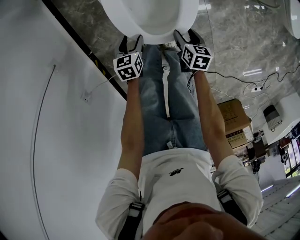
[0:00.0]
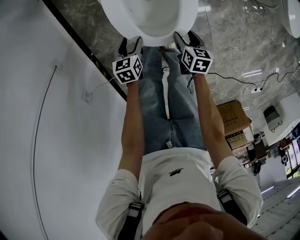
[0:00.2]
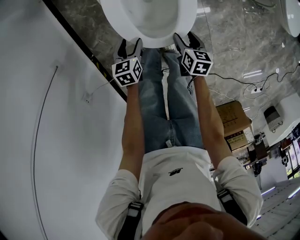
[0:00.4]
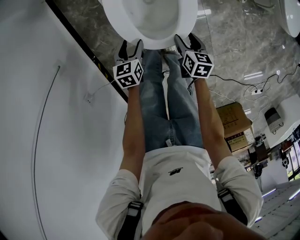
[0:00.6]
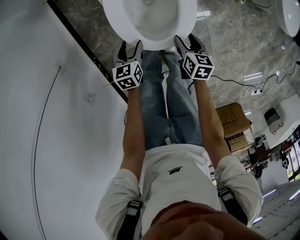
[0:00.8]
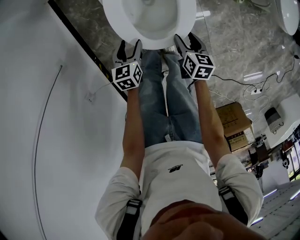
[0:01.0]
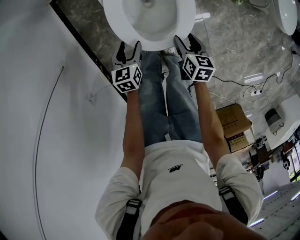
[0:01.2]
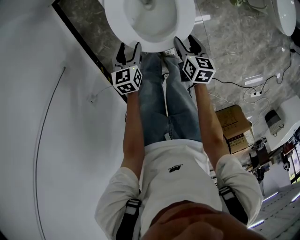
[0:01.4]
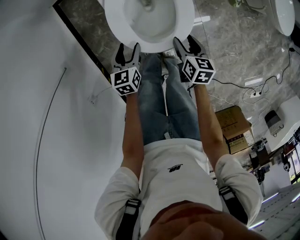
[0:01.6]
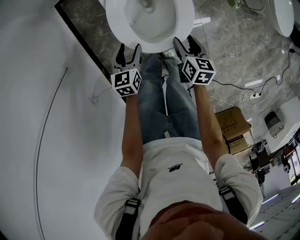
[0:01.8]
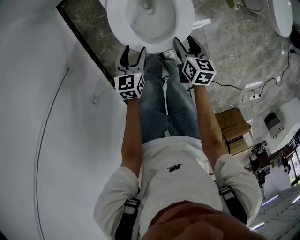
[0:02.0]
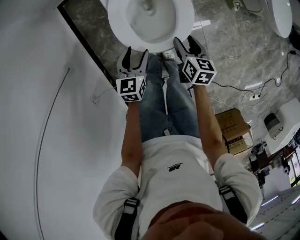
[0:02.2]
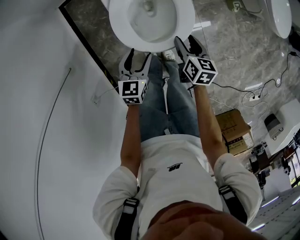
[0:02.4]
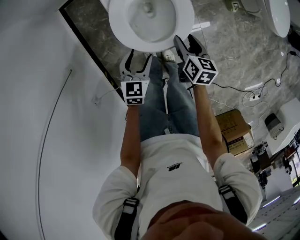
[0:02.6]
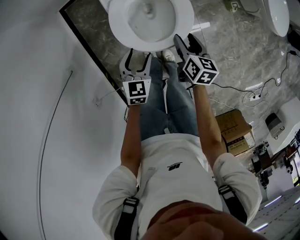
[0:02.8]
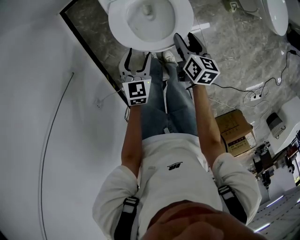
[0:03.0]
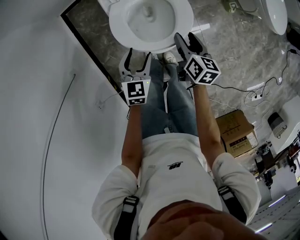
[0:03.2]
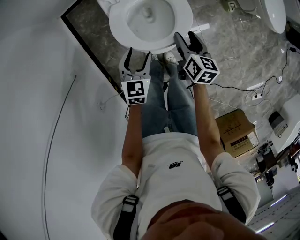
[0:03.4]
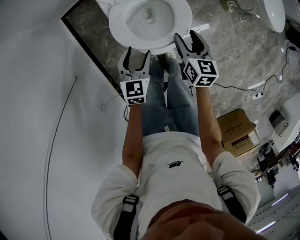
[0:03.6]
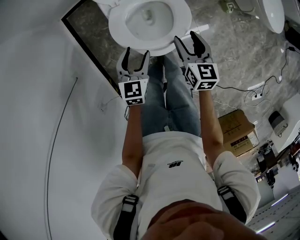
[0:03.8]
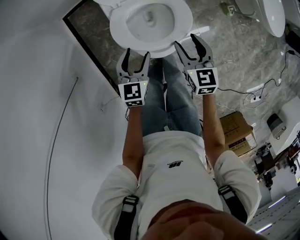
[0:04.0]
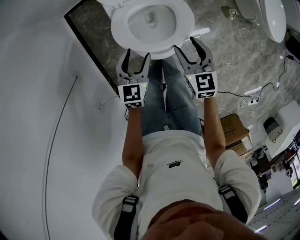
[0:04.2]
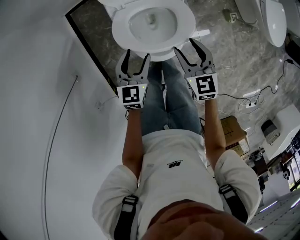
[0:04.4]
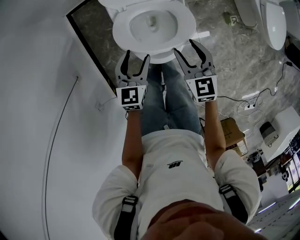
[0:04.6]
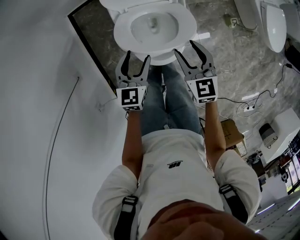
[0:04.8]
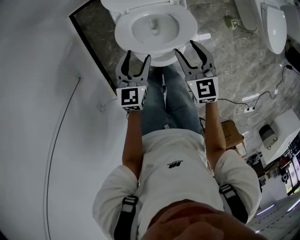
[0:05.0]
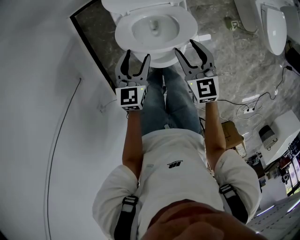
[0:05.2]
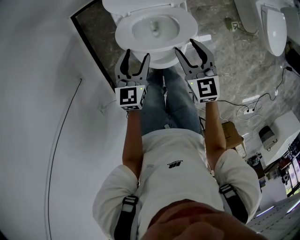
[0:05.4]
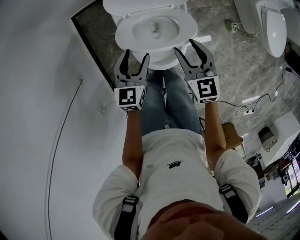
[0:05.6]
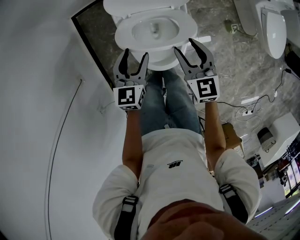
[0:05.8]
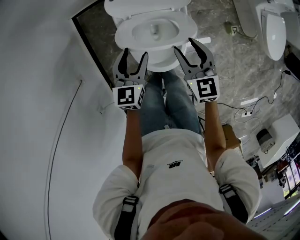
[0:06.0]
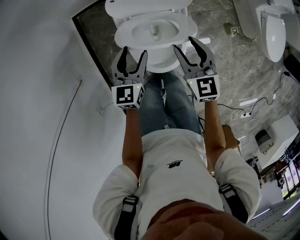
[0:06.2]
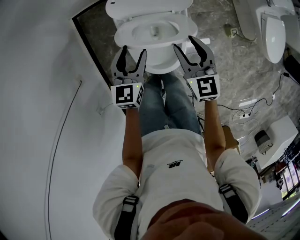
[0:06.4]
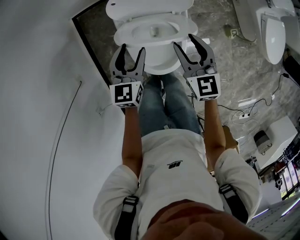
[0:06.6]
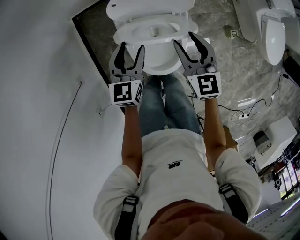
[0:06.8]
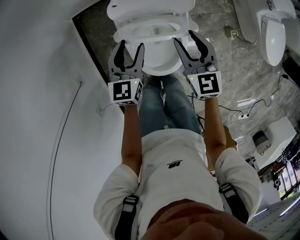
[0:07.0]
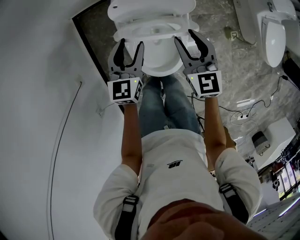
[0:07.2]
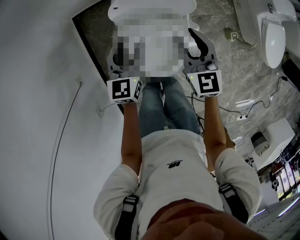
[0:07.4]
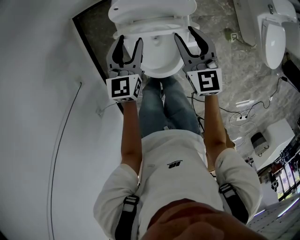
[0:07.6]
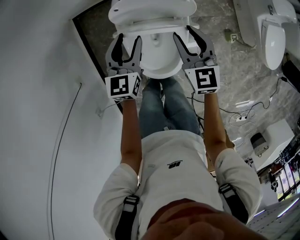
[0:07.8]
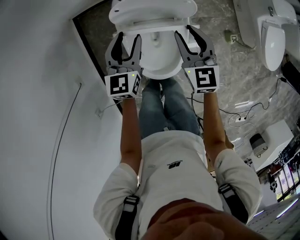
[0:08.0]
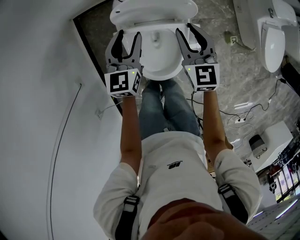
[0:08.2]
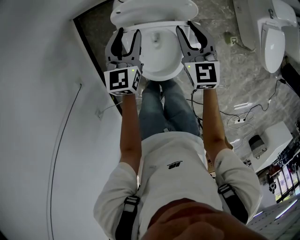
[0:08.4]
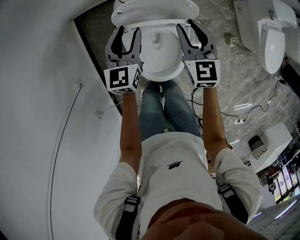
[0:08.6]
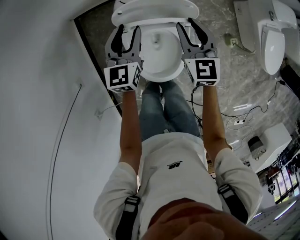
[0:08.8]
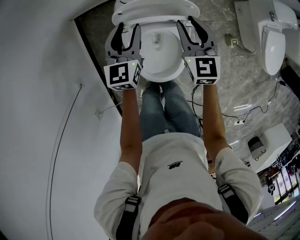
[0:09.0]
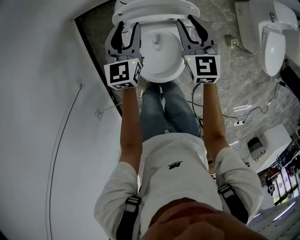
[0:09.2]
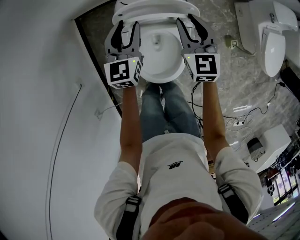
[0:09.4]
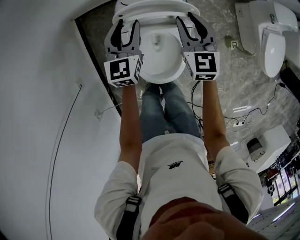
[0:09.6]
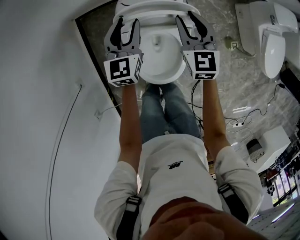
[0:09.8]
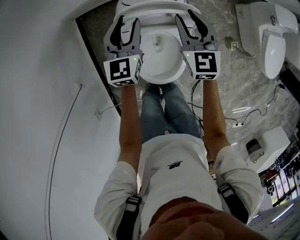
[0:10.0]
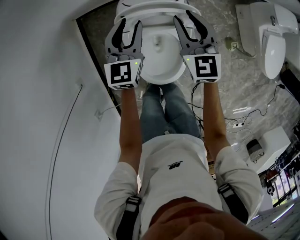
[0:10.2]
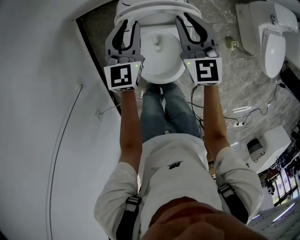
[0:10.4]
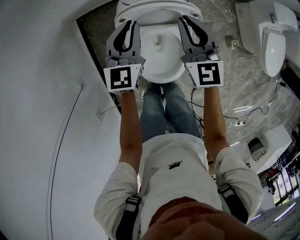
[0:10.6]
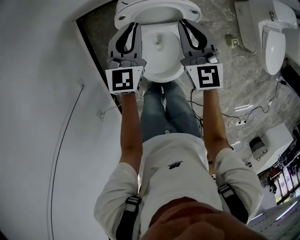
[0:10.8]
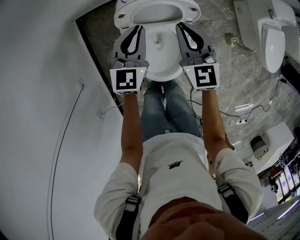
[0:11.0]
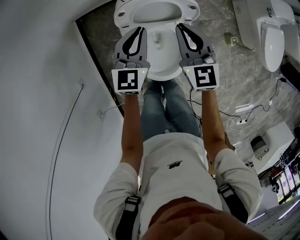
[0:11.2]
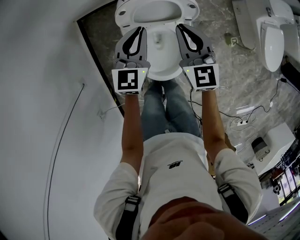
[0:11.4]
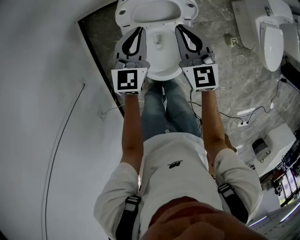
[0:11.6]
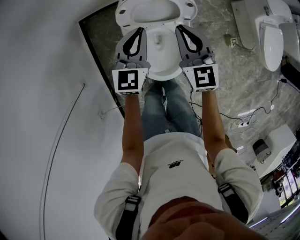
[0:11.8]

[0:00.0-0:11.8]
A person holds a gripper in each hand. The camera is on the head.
0:00.0 to 0:01.4: The two grippers go roughly 15 cm upward.
0:01.4 to 0:03.0: The left gripper moves upward, some 10 cm, and changes its angle by approximately 20 degrees, while the right gripper moves upward and forward, approximately 10 cm.
0:03.0 to 0:04.4: The right gripper goes some 10 cm upward, and twists roughly 40 degrees counterclockwise, seen from behind. The left gripper heads forward and upward, covering approximately 10 cm.
0:04.4 to 0:06.0: The two grippers go about 10 cm forward.
0:06.0 to 0:07.4: Both grippers travel together forward, some 10 cm.
0:07.4 to 0:08.8: Both grippers move forward, some 5 cm.
0:08.8 to 0:10.4: The right gripper shifts by some 5 cm.
0:10.4 to 0:11.8: Both grippers move backward, some 10 cm.

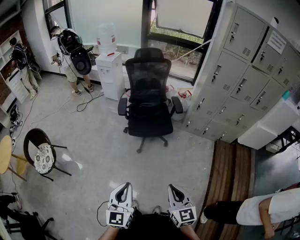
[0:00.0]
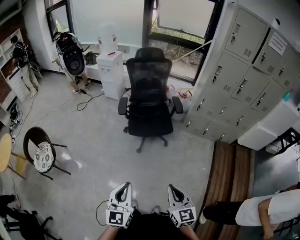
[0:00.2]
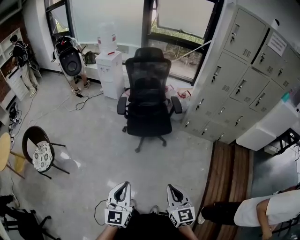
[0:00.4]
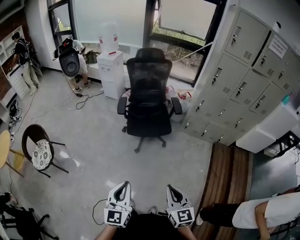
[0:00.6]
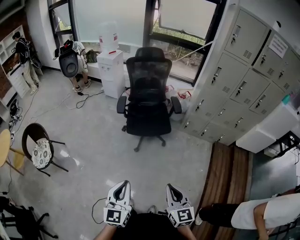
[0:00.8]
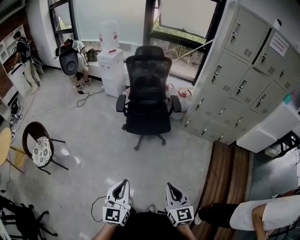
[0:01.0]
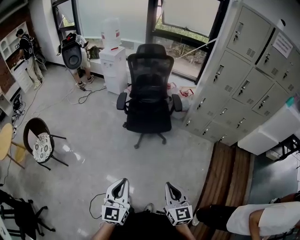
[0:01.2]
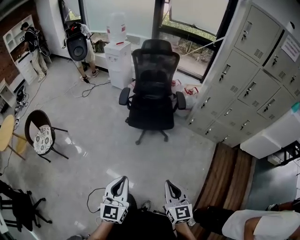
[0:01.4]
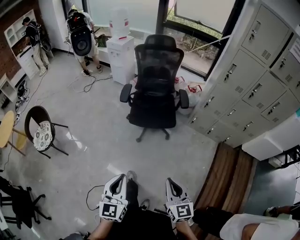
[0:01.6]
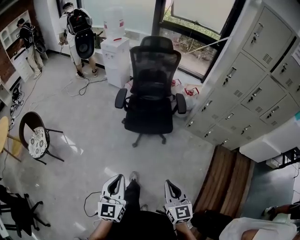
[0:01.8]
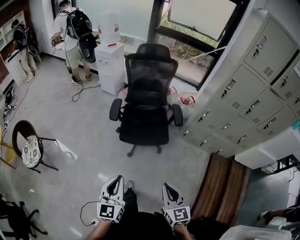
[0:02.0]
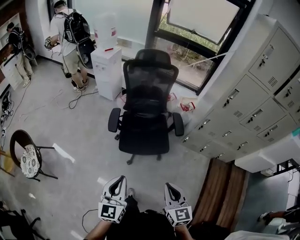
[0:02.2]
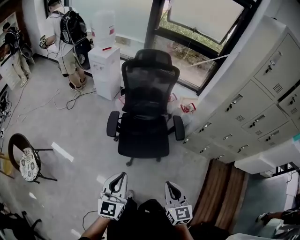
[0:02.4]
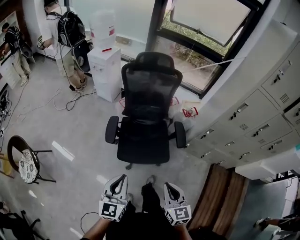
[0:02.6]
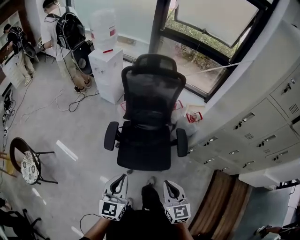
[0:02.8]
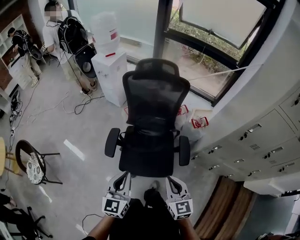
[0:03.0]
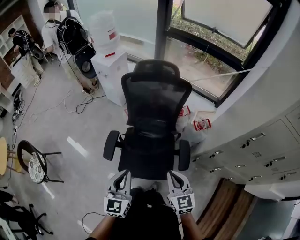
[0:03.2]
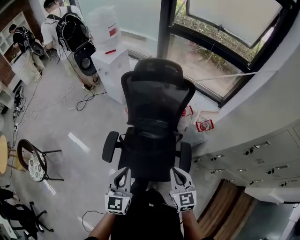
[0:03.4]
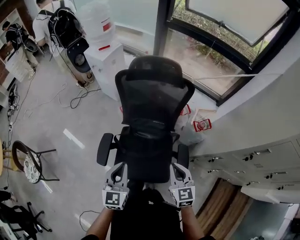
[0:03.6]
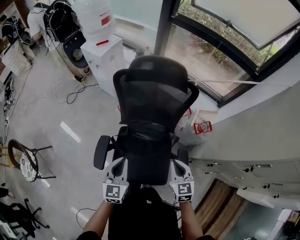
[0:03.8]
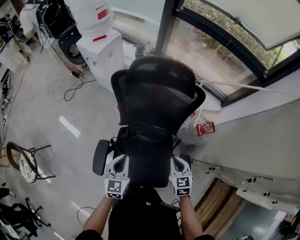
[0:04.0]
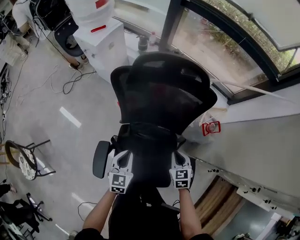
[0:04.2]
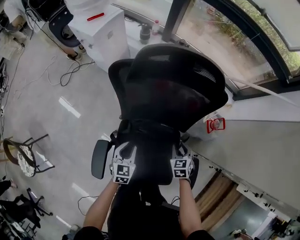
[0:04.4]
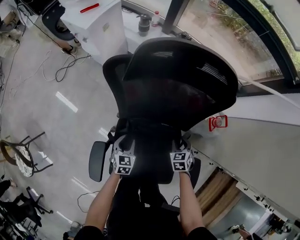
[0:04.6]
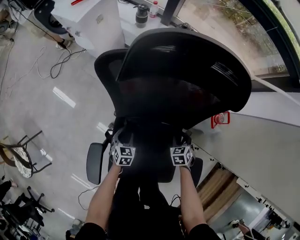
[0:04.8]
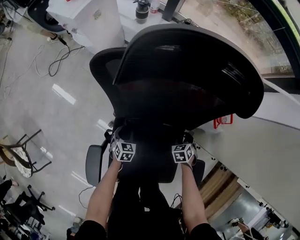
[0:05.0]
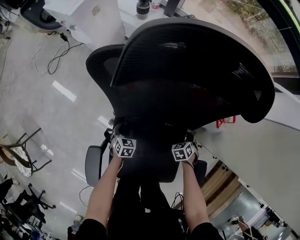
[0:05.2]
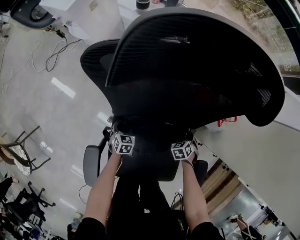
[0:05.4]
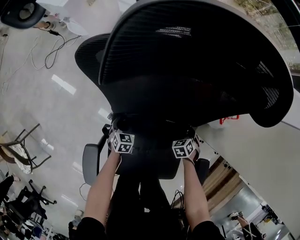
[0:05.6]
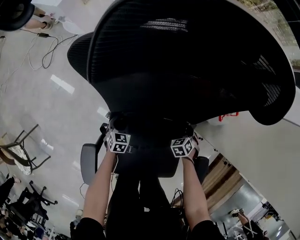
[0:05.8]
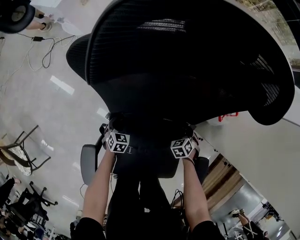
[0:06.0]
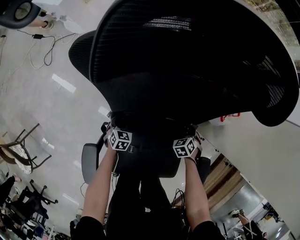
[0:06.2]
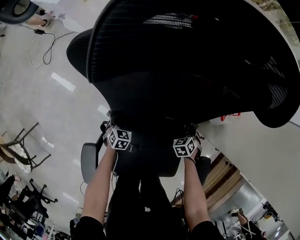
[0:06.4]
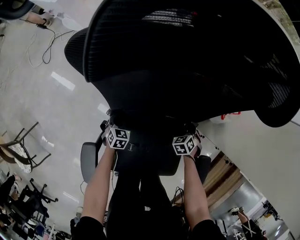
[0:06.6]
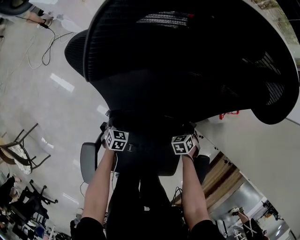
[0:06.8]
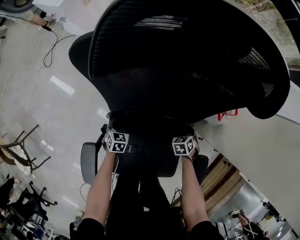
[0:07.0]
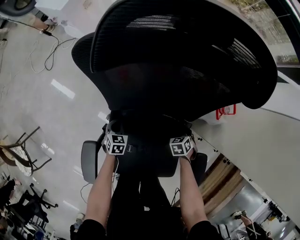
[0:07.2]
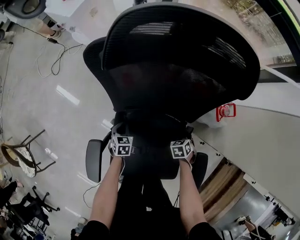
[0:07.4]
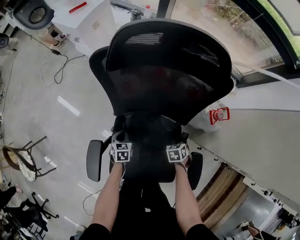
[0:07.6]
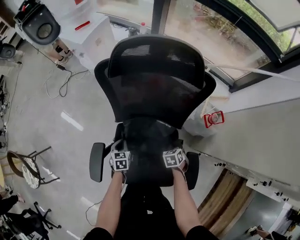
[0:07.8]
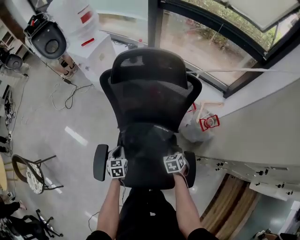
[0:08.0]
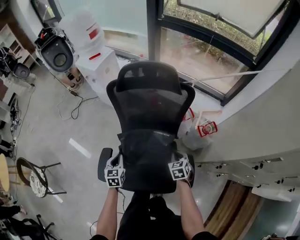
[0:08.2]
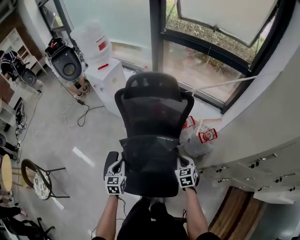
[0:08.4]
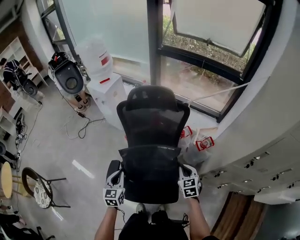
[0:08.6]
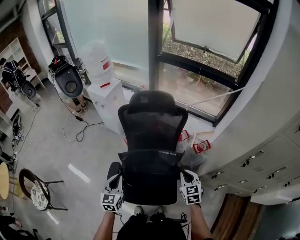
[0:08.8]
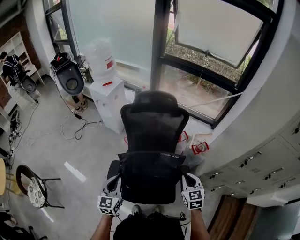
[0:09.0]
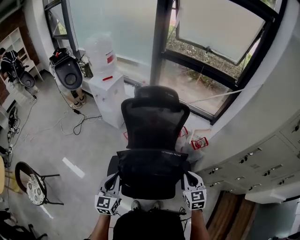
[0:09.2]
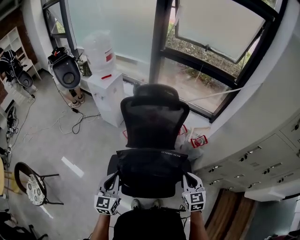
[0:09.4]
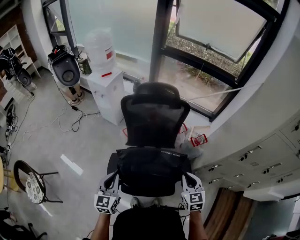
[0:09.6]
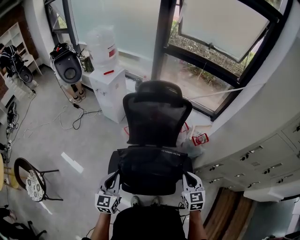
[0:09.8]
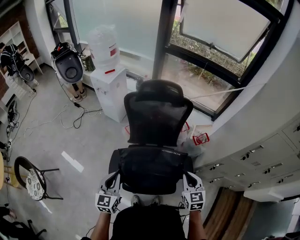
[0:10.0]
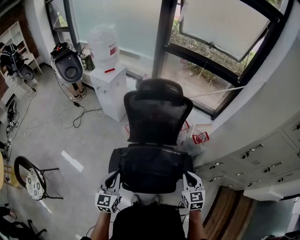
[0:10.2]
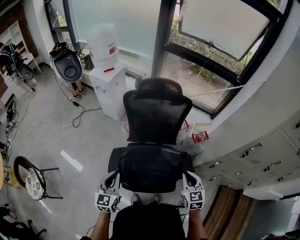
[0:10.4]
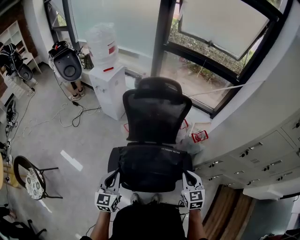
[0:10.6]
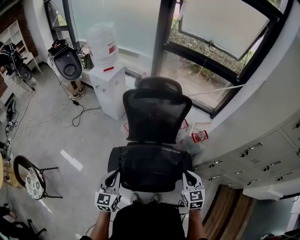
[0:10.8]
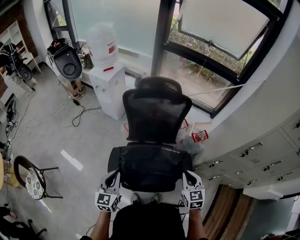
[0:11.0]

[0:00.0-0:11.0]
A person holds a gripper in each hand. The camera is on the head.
0:00.0 to 0:01.6: The grippers both shift to the right by some 5 cm.
0:01.6 to 0:03.2: Both grippers are carried forward, roughly 60 cm.
0:03.2 to 0:04.8: Both grippers travel together downward and forward, roughly 60 cm. The right gripper angles its fingers downward, by roughly 50 degrees, and opens up. The left gripper tips its fingers downward by about 40 degrees, and opens up.
0:04.8 to 0:06.2: Both grippers travel together downward, roughly 10 cm.
0:06.2 to 0:07.8: Both grippers travel together upward, roughly 15 cm. The left gripper changes its angle by about 20 degrees, and closes up. The right gripper closes up.
0:07.8 to 0:09.4: The two grippers go some 40 cm upward and backward. The left gripper tips its fingers upward by about 40 degrees. Meanwhile the right gripper points its fingers roughly 40 degrees further upward.
0:09.4 to 0:11.0: The grippers stay close to where they were, moving slightly.

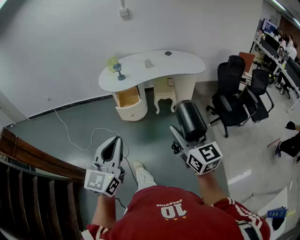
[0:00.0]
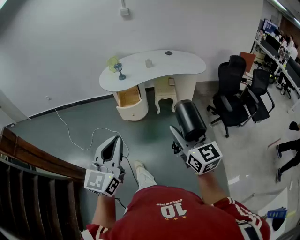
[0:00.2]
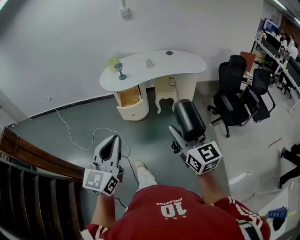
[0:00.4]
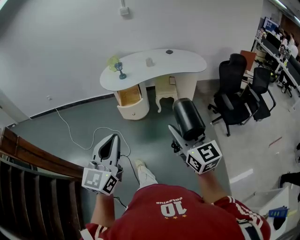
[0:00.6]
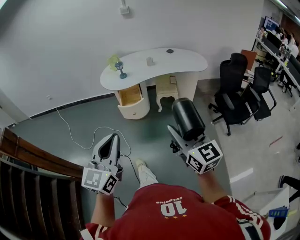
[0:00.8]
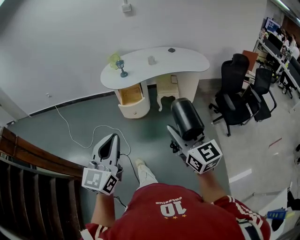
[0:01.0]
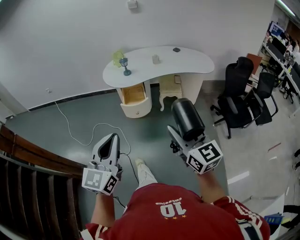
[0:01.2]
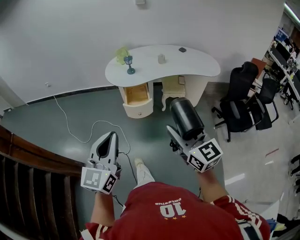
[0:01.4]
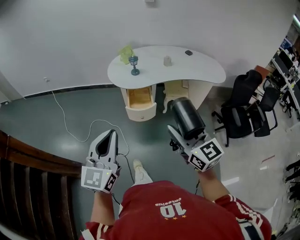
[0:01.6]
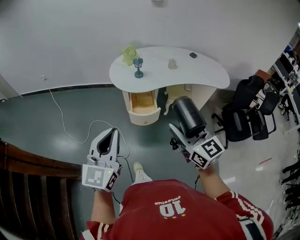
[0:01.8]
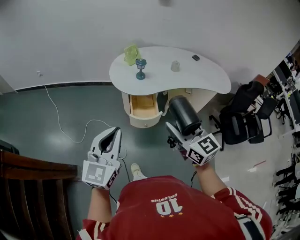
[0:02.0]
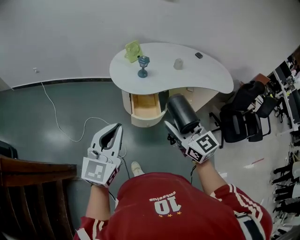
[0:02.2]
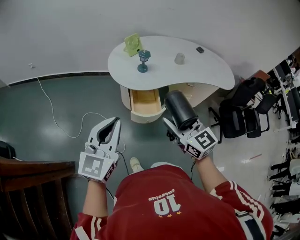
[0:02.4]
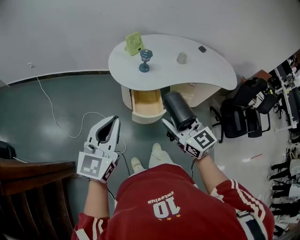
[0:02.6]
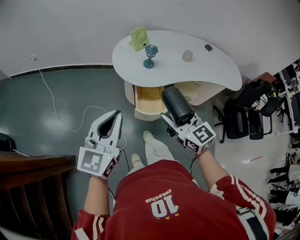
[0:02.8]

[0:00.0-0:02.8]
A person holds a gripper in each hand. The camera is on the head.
0:00.0 to 0:01.4: The grippers both shift forward and to the left by approximately 15 cm.
0:01.4 to 0:02.8: The right gripper goes about 35 cm forward and to the left, while the left gripper is displaced forward by approximately 30 cm.
